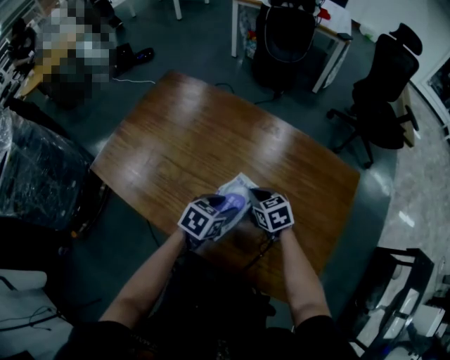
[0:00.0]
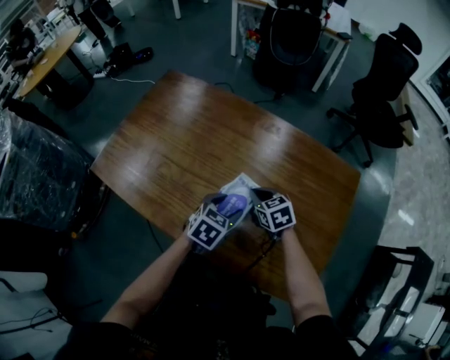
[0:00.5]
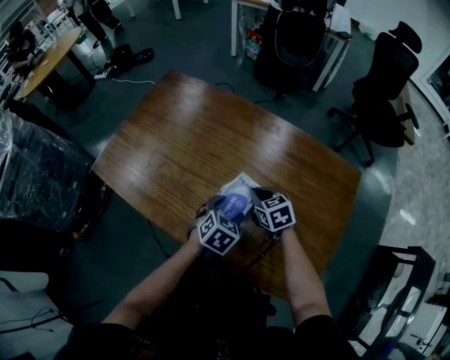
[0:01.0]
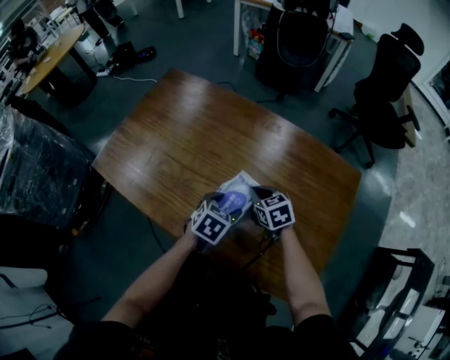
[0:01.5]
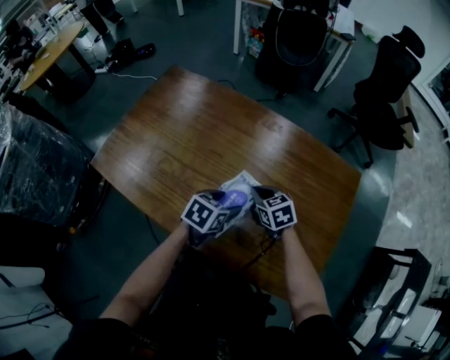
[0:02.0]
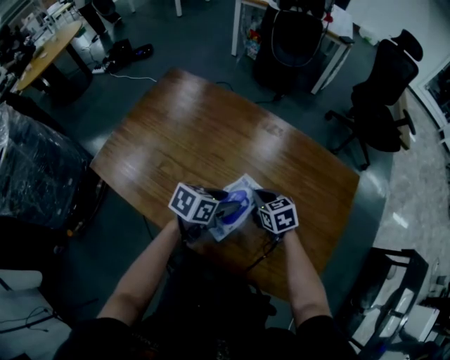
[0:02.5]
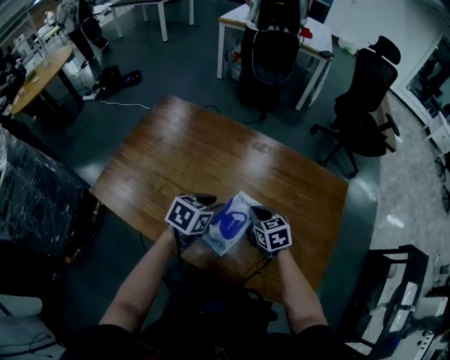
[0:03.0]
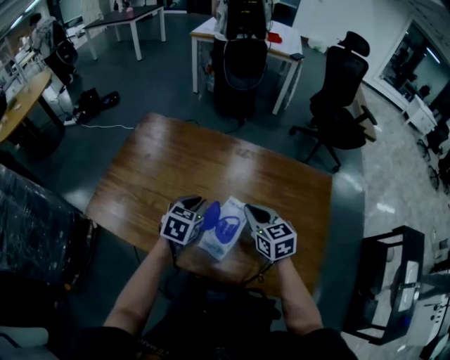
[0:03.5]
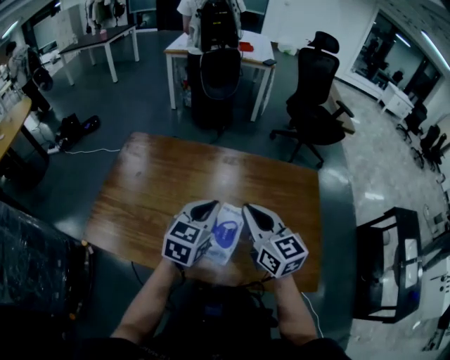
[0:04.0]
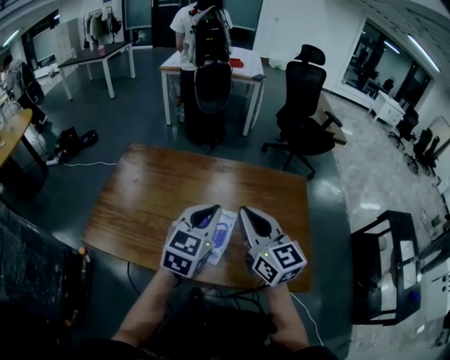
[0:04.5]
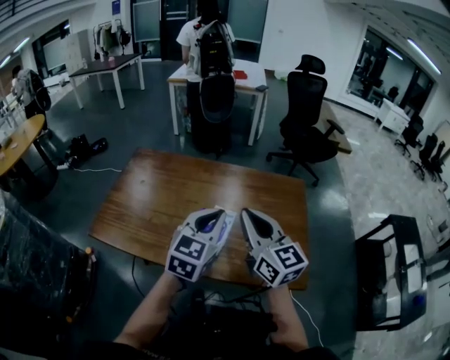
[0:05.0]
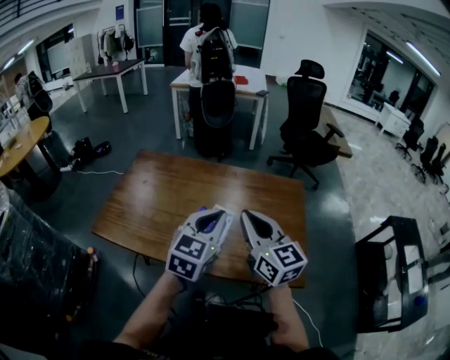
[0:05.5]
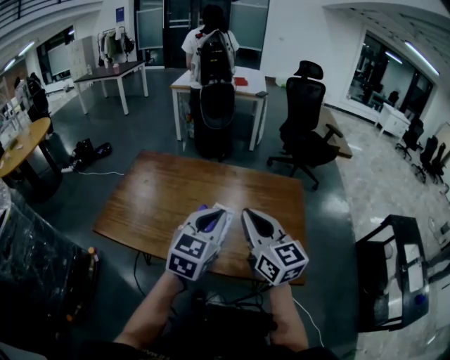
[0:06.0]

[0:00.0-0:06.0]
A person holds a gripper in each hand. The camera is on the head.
0:02.0 to 0:04.0: Both grippers travel together upward, about 20 cm. The right gripper tilts its fingers about 40 degrees upward; the left gripper swivels roughly 30 degrees, and closes its fingers.
0:04.0 to 0:06.0: The grippers both shift backward, upward and to the right by about 15 cm.

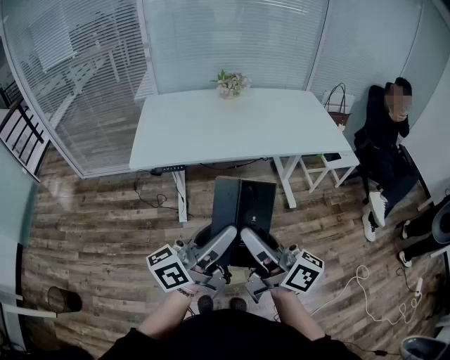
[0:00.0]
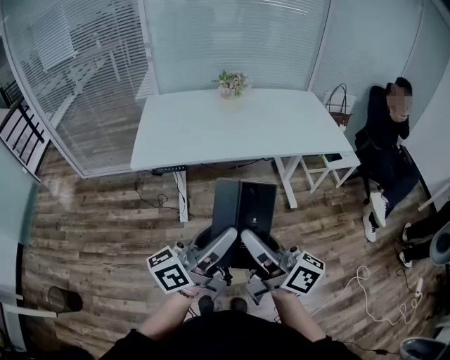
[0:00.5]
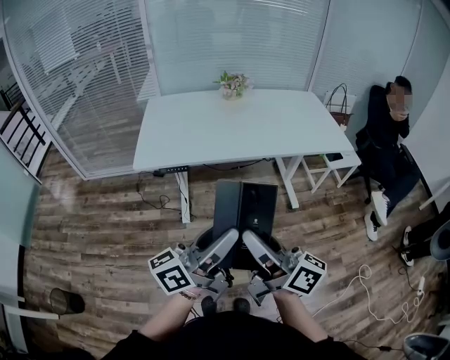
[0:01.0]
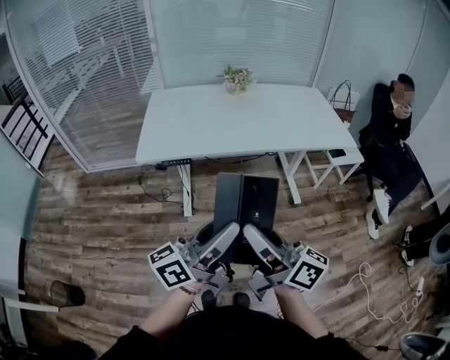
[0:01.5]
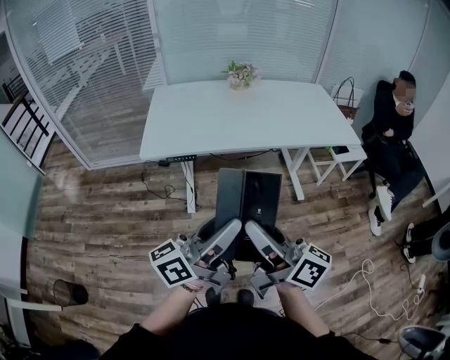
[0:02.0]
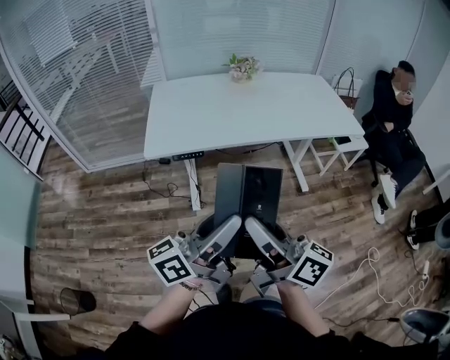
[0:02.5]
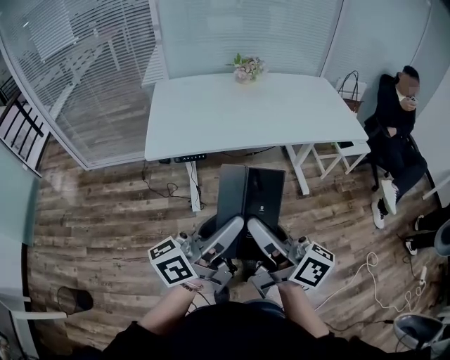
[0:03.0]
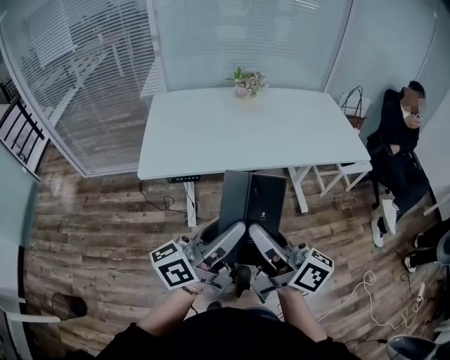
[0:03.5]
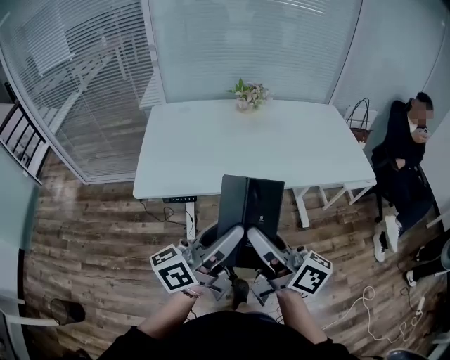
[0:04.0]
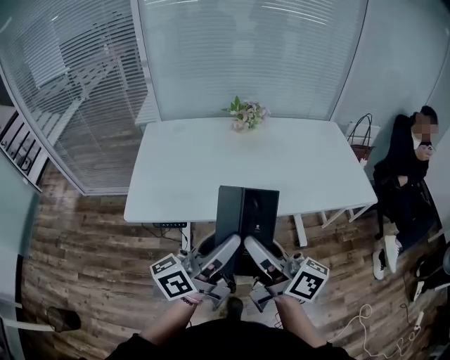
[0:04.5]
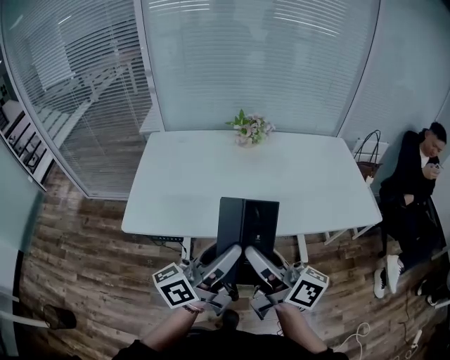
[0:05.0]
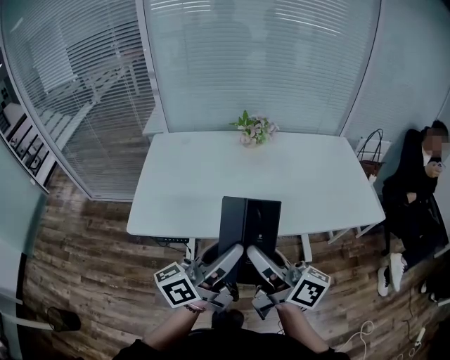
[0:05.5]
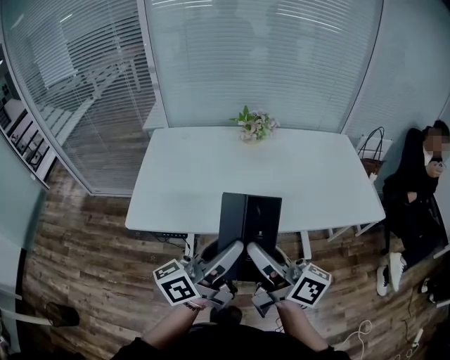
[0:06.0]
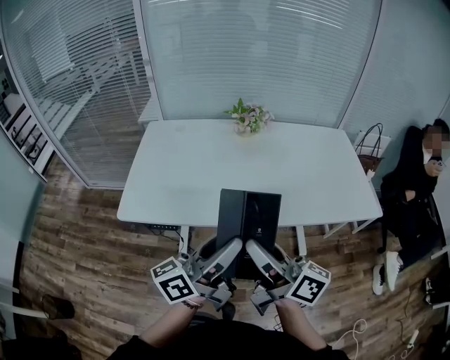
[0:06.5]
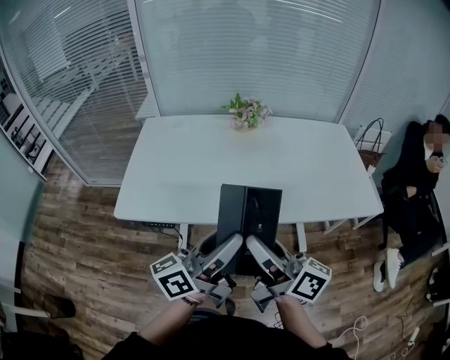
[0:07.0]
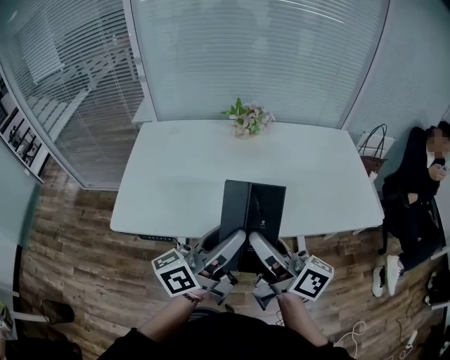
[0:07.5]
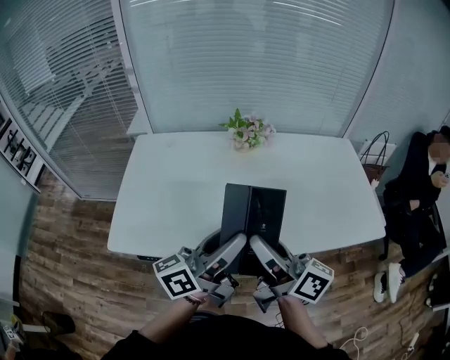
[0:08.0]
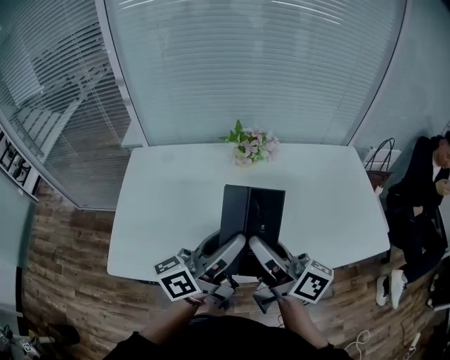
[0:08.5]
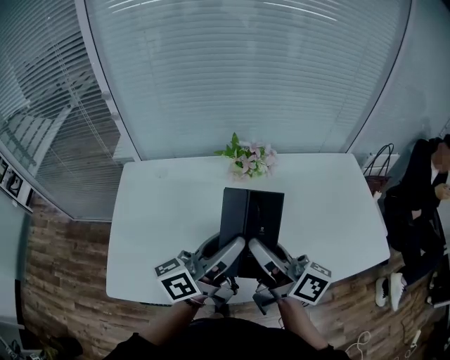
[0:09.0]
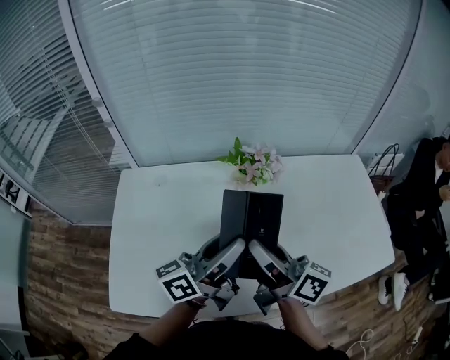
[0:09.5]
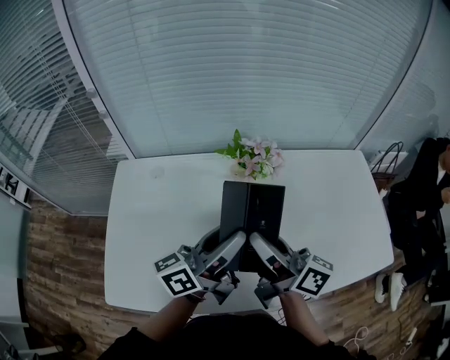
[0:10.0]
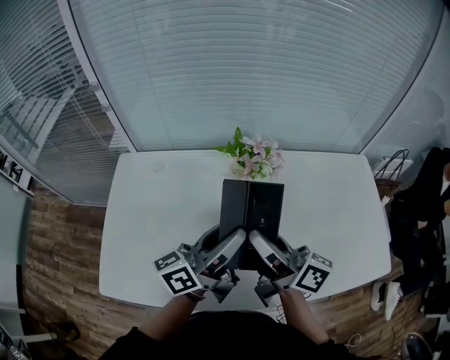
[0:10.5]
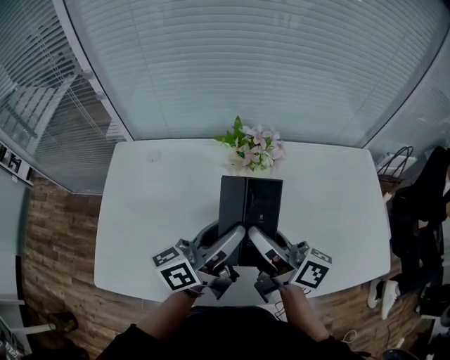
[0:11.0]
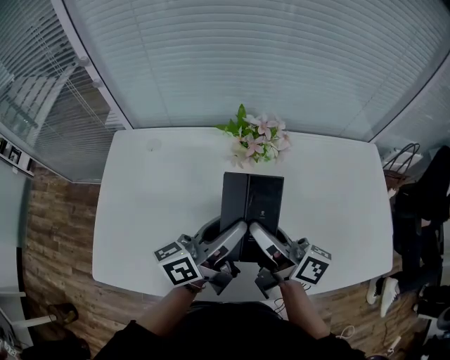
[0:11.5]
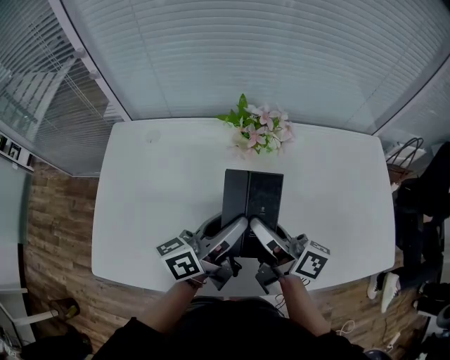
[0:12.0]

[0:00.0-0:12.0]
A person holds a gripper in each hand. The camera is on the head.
0:00.0 to 0:02.0: The grippers stay close to where they were, moving slightly.
0:02.0 to 0:04.0: Both grippers move forward, approximately 20 cm.
0:04.0 to 0:06.0: Both grippers travel together forward, some 10 cm.
0:06.0 to 0:08.0: The grippers both shift forward by about 10 cm.
0:08.0 to 0:10.0: The two grippers go about 20 cm forward.
0:10.0 to 0:12.0: Both grippers travel together downward, approximately 10 cm.

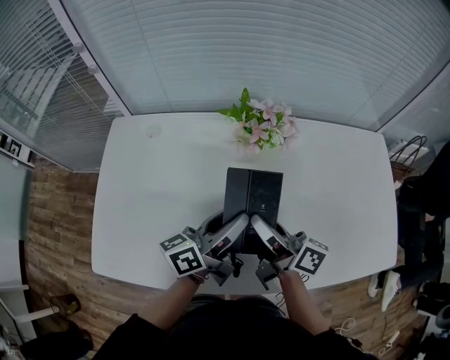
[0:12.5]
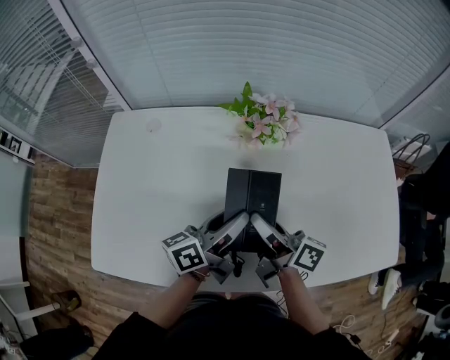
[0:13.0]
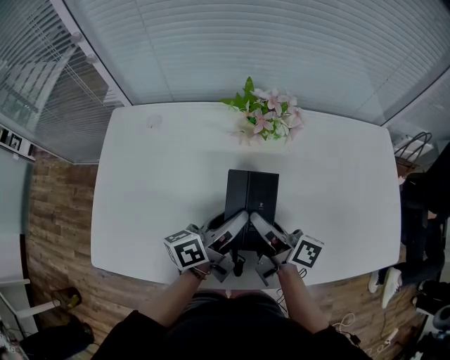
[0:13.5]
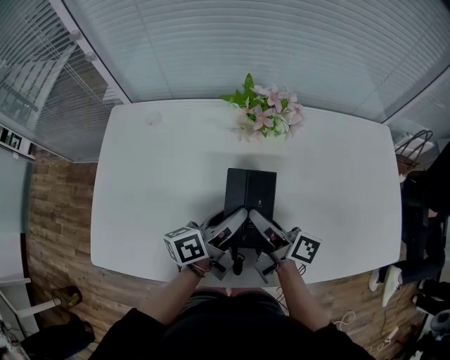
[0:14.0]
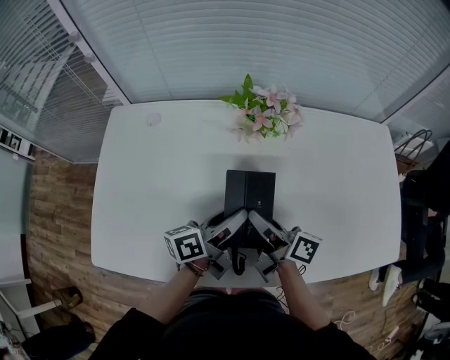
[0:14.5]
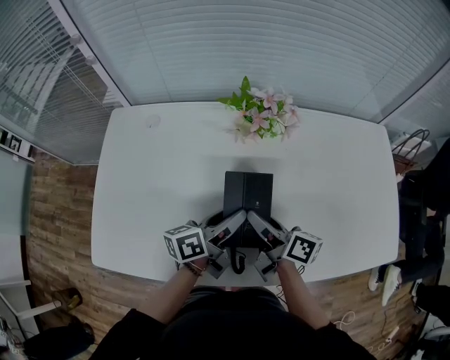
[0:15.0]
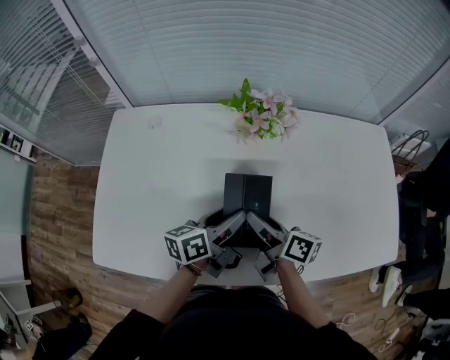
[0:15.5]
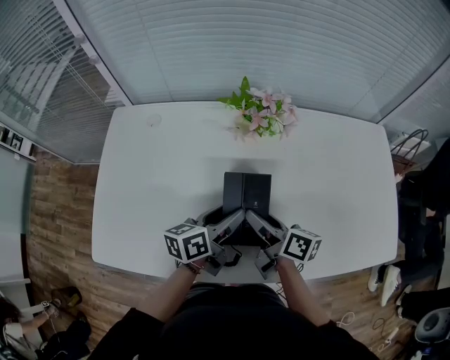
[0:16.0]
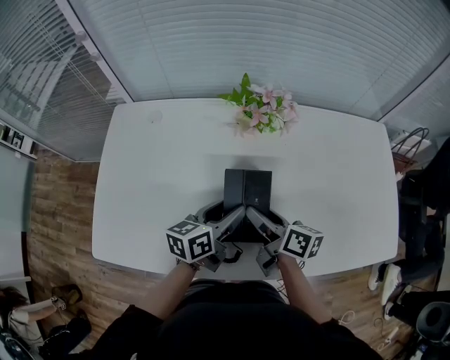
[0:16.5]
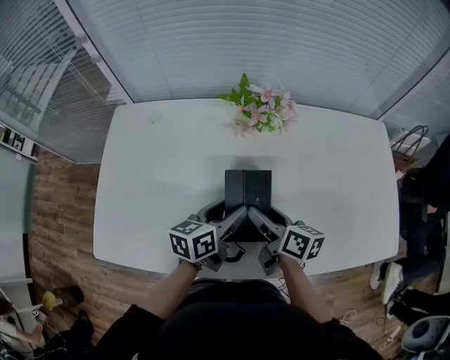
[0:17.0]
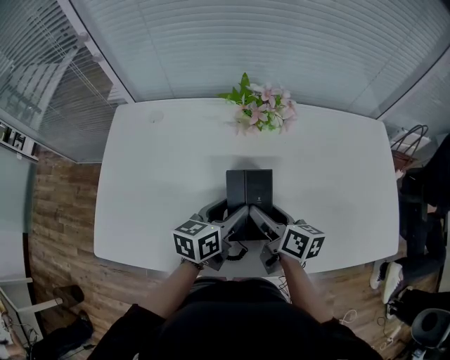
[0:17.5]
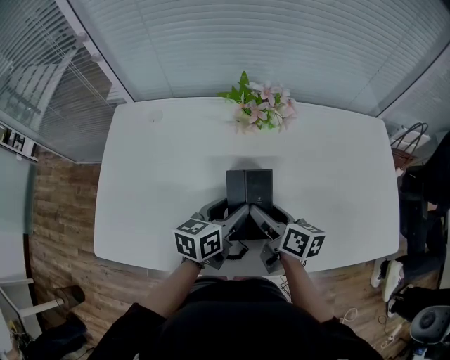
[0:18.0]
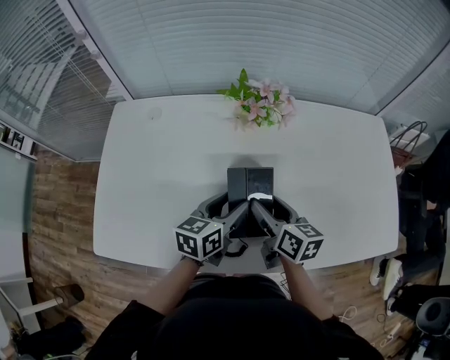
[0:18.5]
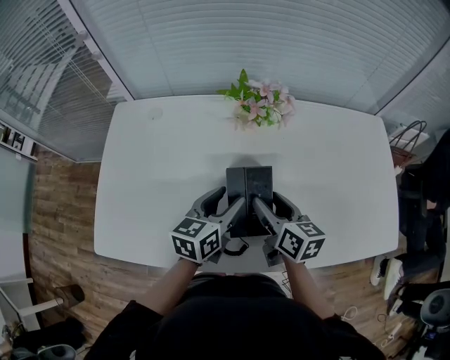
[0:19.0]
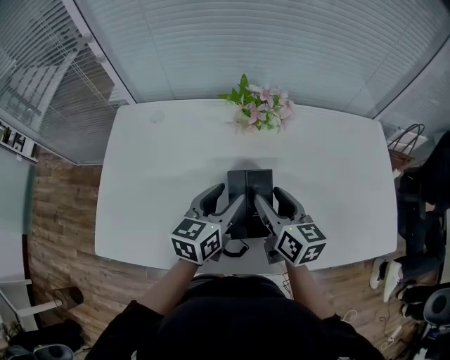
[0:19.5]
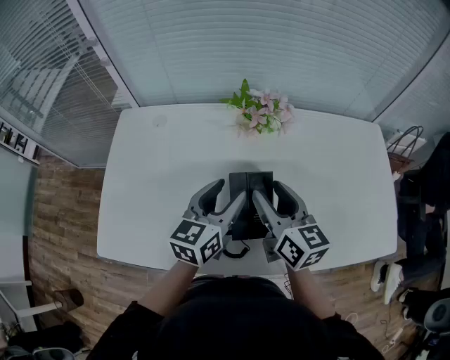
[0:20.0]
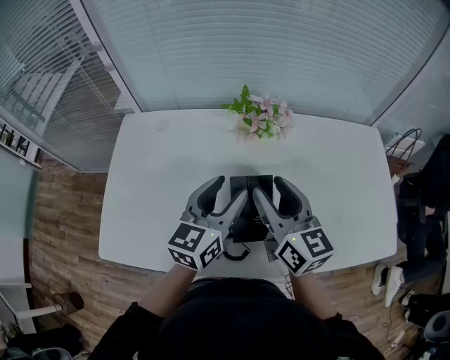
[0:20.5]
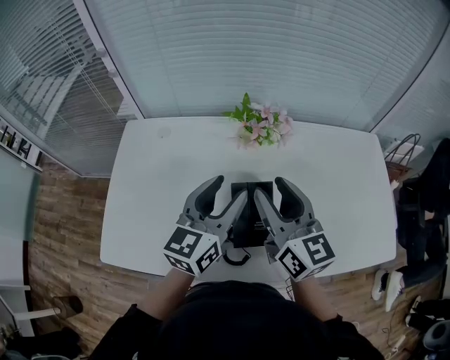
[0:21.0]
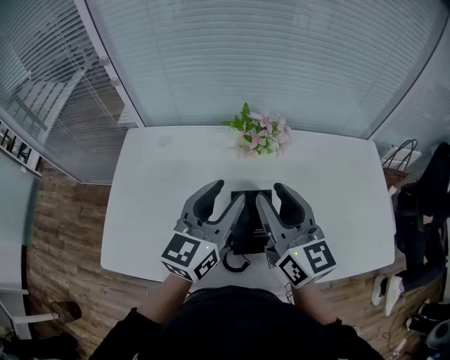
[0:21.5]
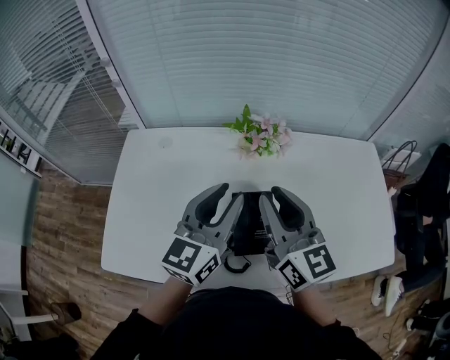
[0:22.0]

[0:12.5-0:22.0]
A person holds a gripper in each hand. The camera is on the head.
0:12.5 to 0:14.5: Both grippers travel together downward, about 5 cm.
0:14.5 to 0:16.5: The left gripper turns by roughly 30 degrees.
0:16.5 to 0:18.0: The grippers make only small movements.
0:18.0 to 0:20.0: The grippers both shift upward by about 10 cm. The right gripper changes its angle by roughly 30 degrees, while the left gripper swivels roughly 20 degrees.
0:20.0 to 0:22.0: Both grippers travel together upward, some 10 cm. The left gripper closes. The right gripper closes its fingers.
